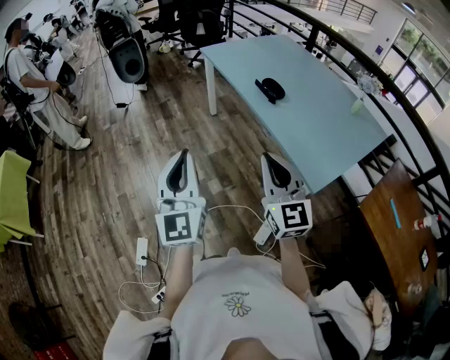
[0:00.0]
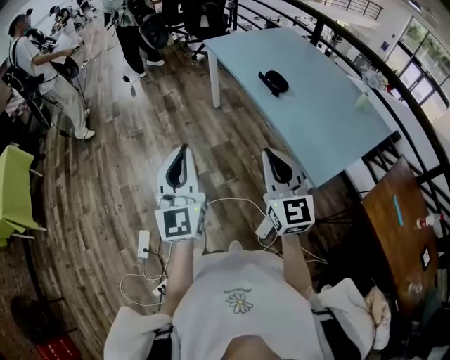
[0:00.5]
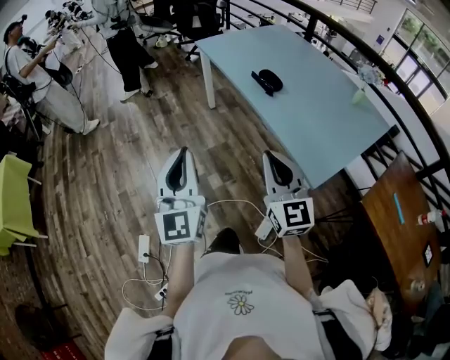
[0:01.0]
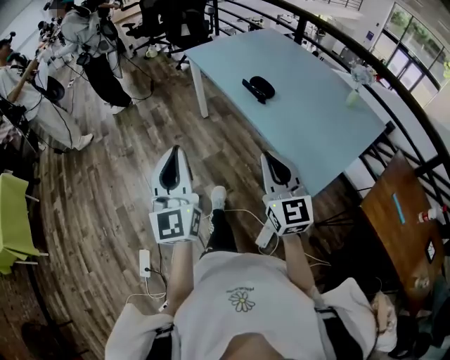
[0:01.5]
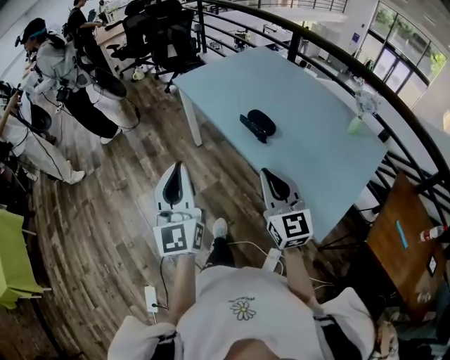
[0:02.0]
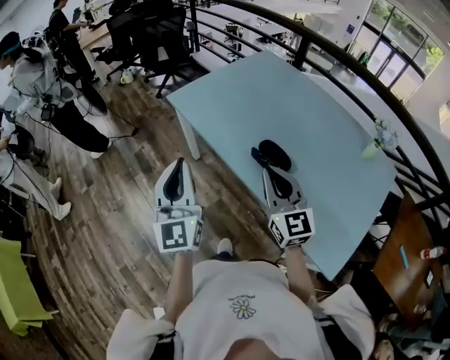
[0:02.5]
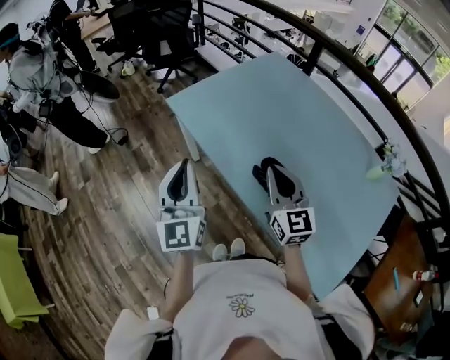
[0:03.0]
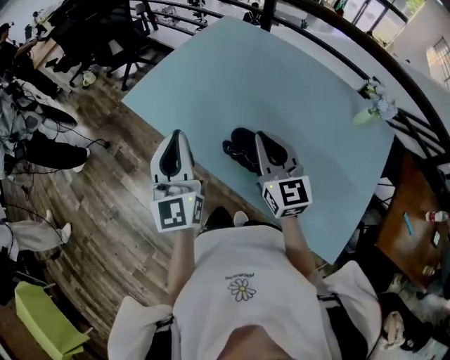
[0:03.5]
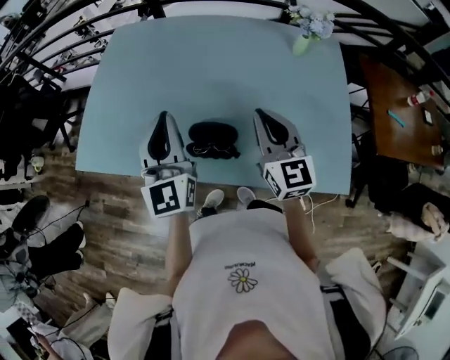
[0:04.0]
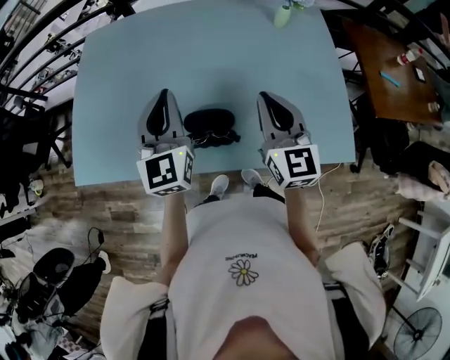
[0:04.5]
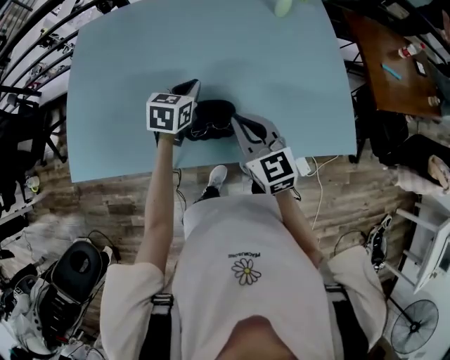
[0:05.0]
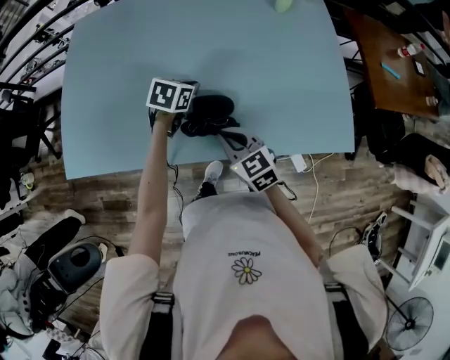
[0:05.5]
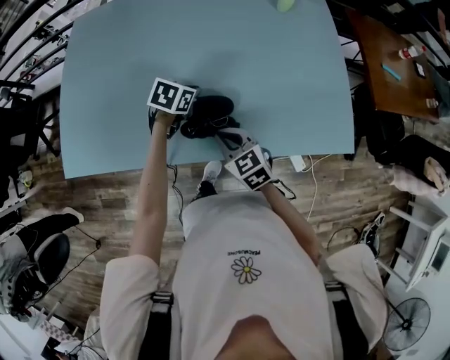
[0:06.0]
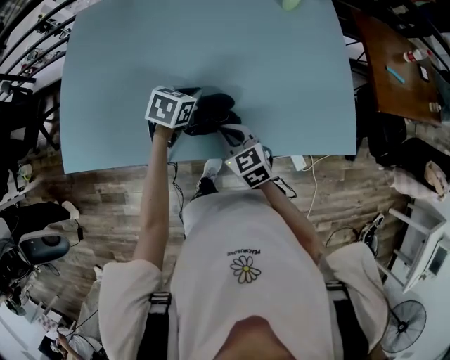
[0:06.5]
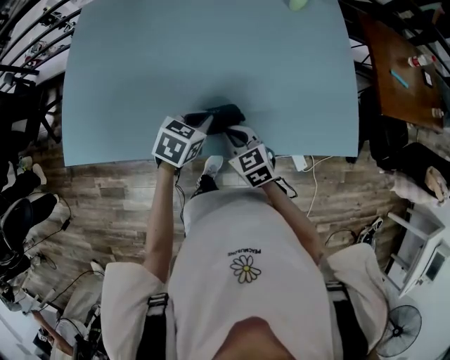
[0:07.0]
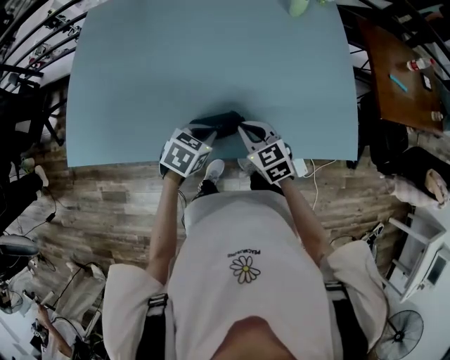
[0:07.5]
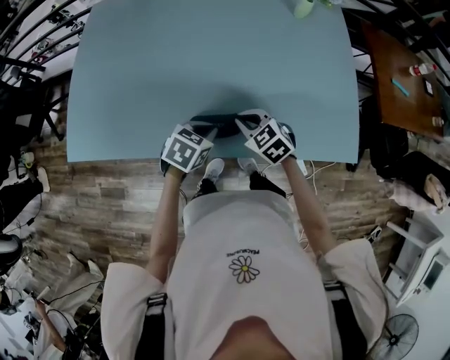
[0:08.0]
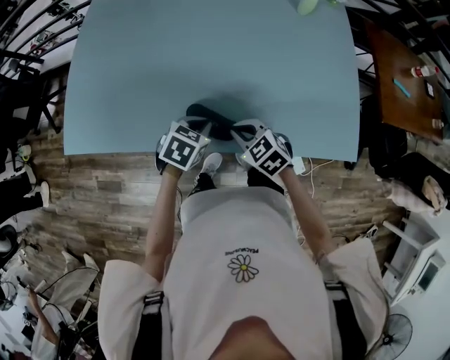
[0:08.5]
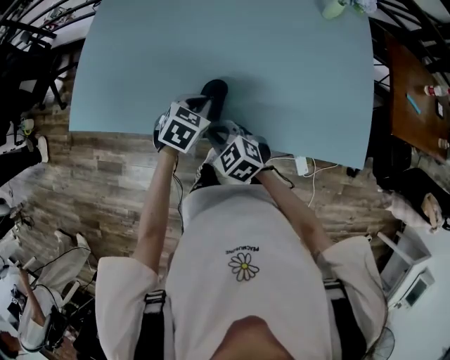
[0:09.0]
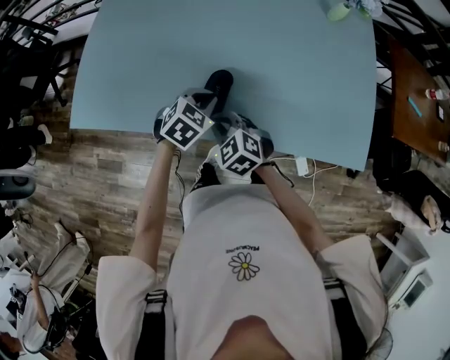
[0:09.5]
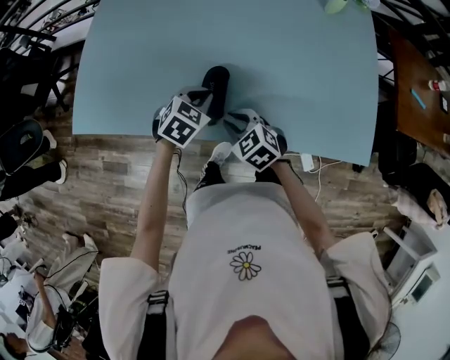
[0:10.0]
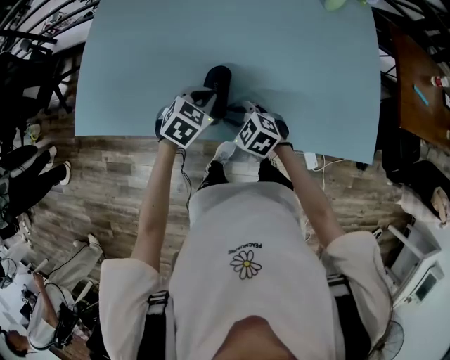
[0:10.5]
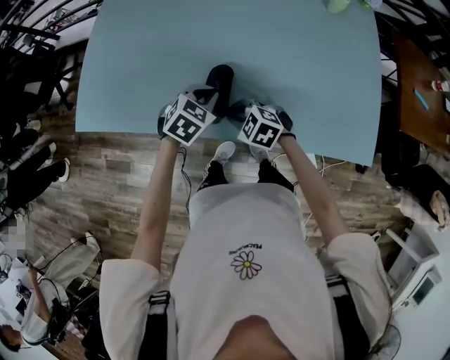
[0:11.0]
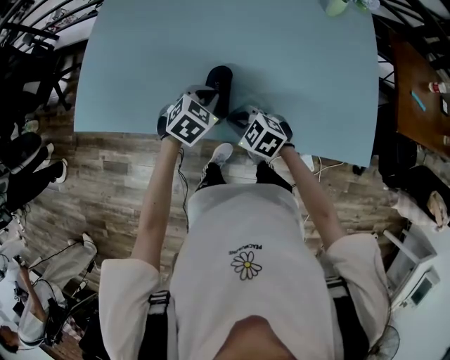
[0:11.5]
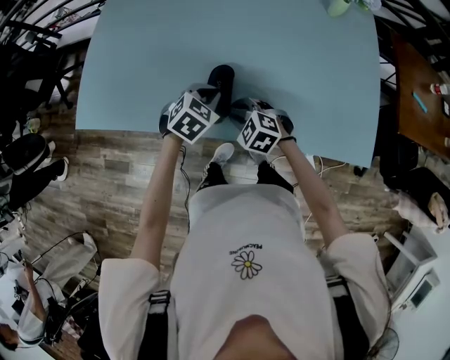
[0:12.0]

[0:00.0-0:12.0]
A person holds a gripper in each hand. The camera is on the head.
0:00.0 to 0:02.0: The two grippers go approximately 25 cm forward.
0:02.0 to 0:04.0: The left gripper moves about 50 cm, and turns by some 40 degrees, while the right gripper moves approximately 35 cm, and changes its angle by about 50 degrees.
0:04.0 to 0:06.0: The left gripper is displaced downward by some 30 cm, and angles its fingers downward, by some 60 degrees, while the right gripper heads downward and to the left, covering approximately 20 cm, and points its fingers approximately 30 degrees further downward.
0:06.0 to 0:08.0: The left gripper is displaced backward by some 15 cm, while the right gripper shifts by approximately 5 cm.
0:08.0 to 0:10.0: The left gripper moves to the left and forward, roughly 10 cm; the right gripper is displaced to the left by some 10 cm.
0:10.0 to 0:12.0: The right gripper changes its angle by roughly 20 degrees.

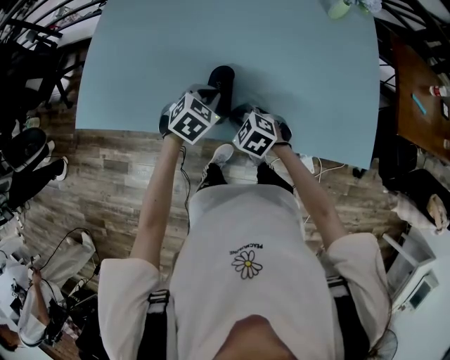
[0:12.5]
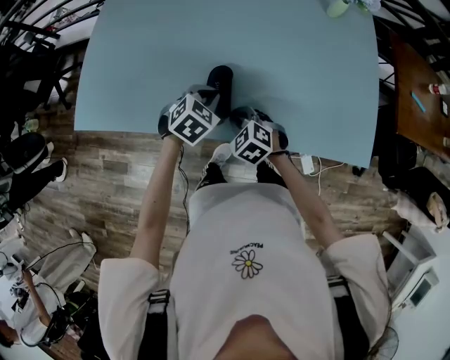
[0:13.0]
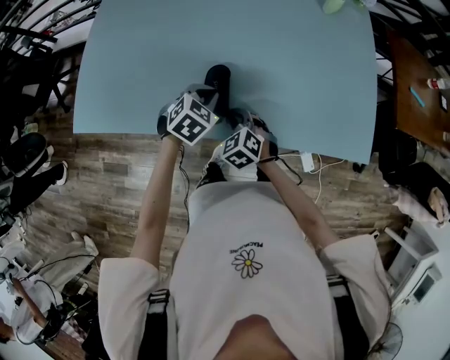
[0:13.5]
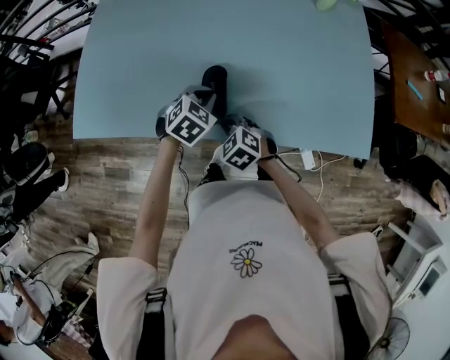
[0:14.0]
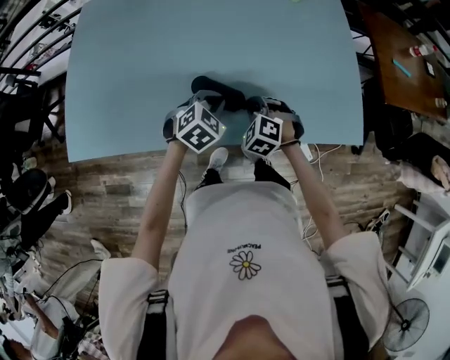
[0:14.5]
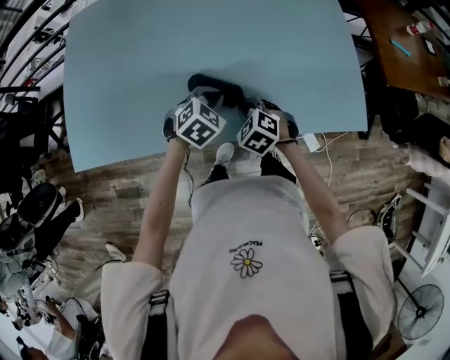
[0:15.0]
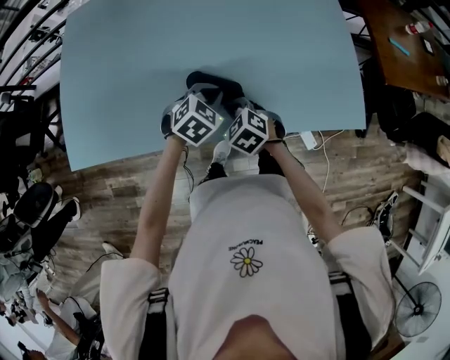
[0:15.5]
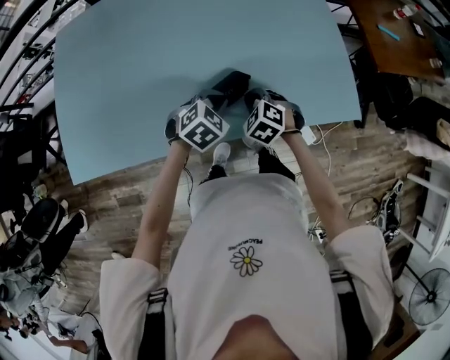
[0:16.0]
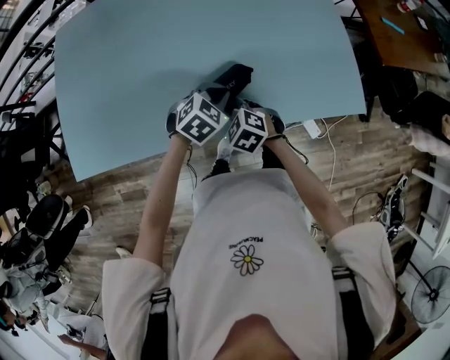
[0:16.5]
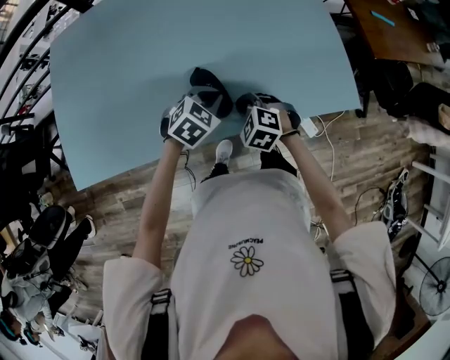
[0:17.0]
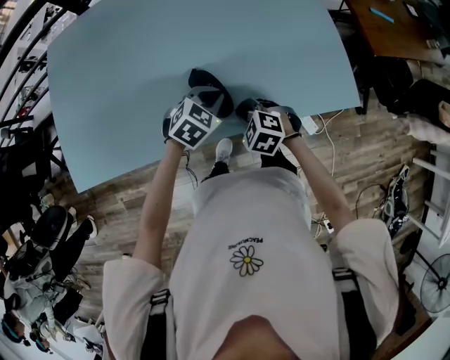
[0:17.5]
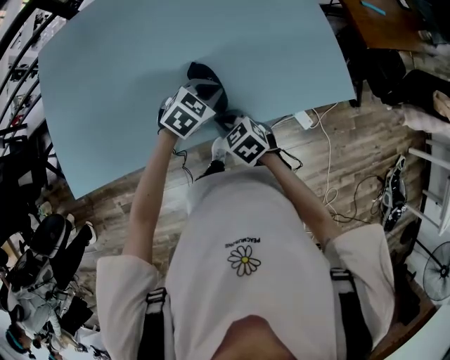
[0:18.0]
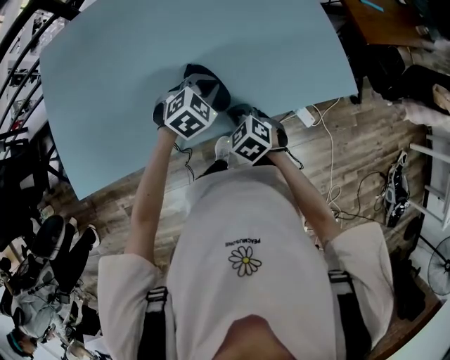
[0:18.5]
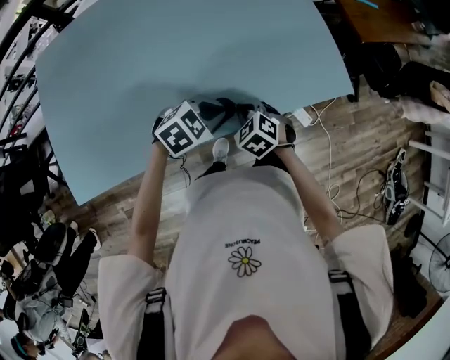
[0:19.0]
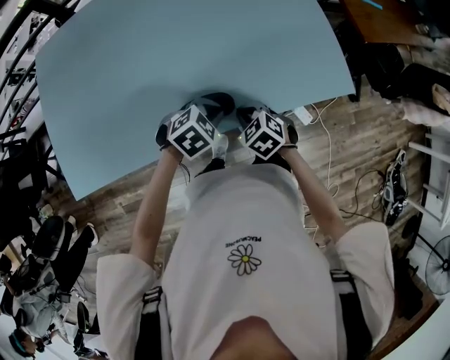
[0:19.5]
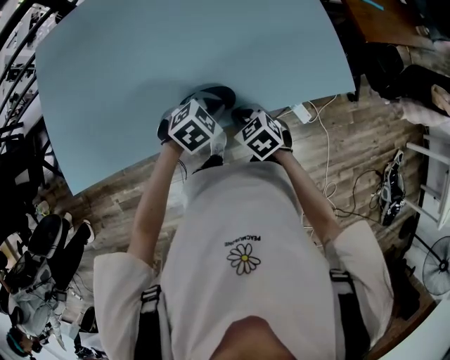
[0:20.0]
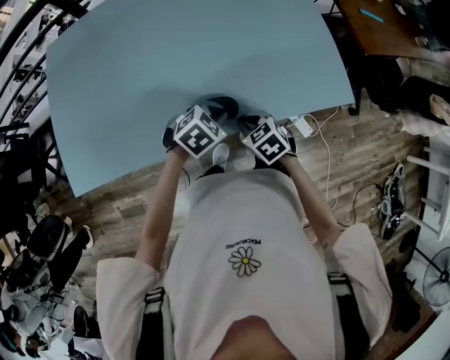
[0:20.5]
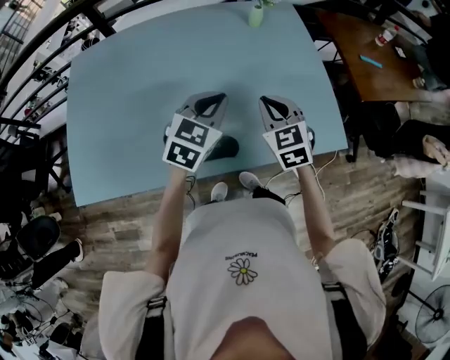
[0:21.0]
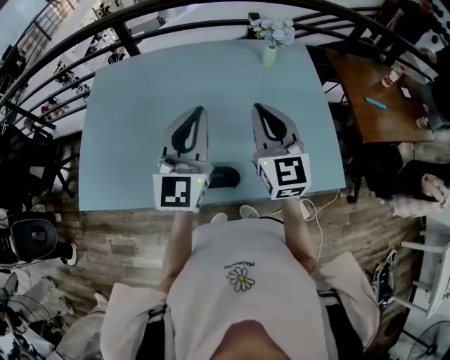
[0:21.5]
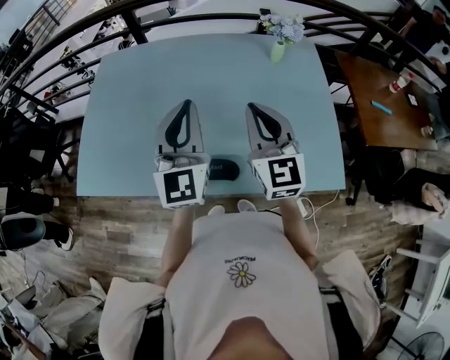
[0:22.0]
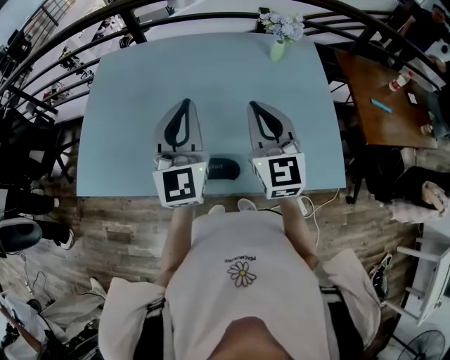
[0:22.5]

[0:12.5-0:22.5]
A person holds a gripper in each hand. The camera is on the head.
0:12.5 to 0:14.5: The left gripper moves some 10 cm, while the right gripper ends up roughly 10 cm from where it was, and rotates approximately 30 degrees.
0:14.5 to 0:16.5: The left gripper goes roughly 5 cm to the right; the right gripper moves left and right over roughly 10 cm, changing direction 2 times, and swivels roughly 30 degrees.
0:18.5 to 0:20.5: The left gripper goes roughly 5 cm backward.
0:20.5 to 0:22.5: The two grippers go some 30 cm upward. The right gripper tilts its fingers approximately 60 degrees upward, while the left gripper tips its fingers upward by roughly 70 degrees.

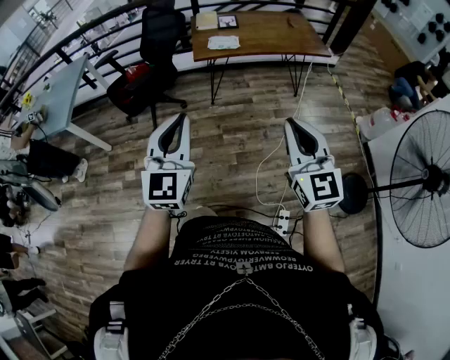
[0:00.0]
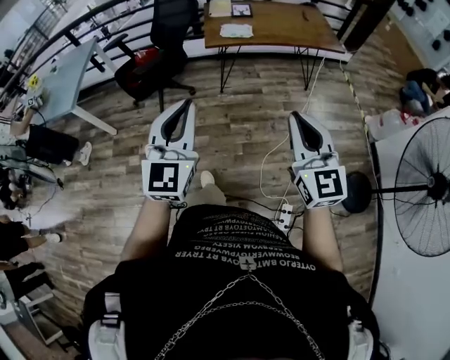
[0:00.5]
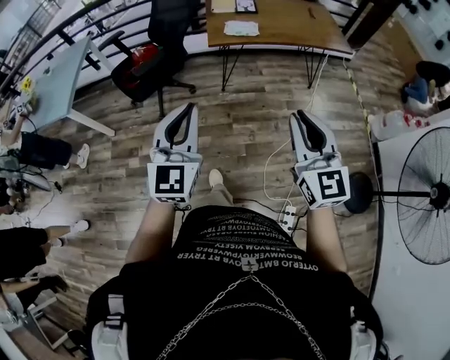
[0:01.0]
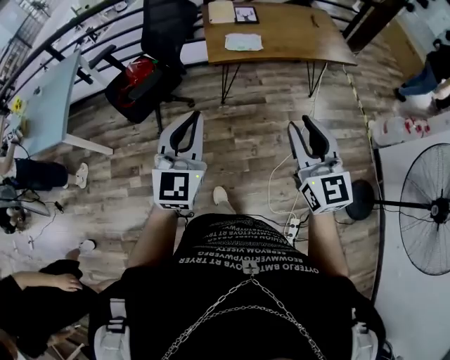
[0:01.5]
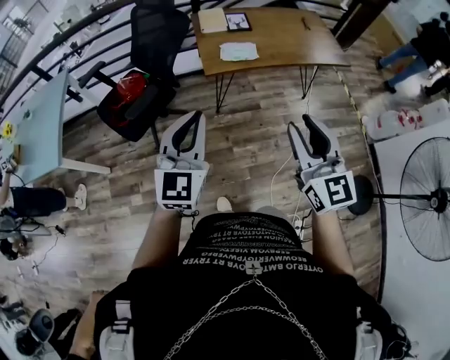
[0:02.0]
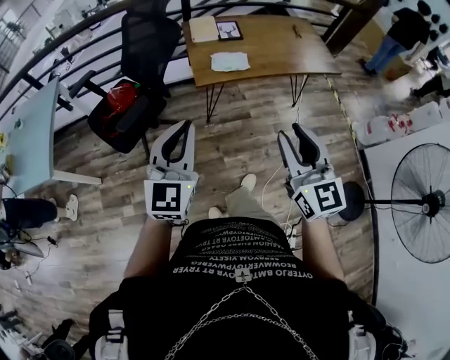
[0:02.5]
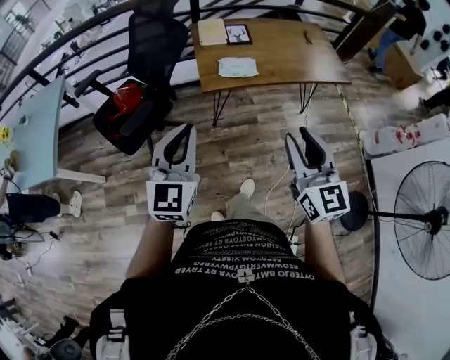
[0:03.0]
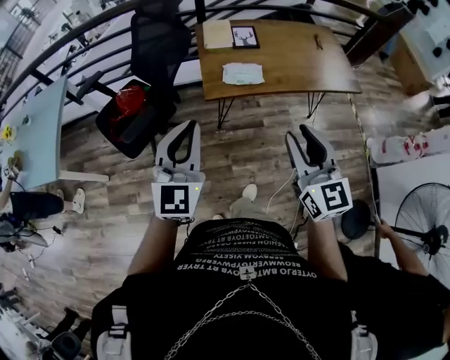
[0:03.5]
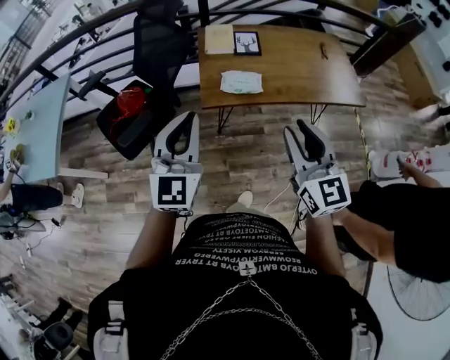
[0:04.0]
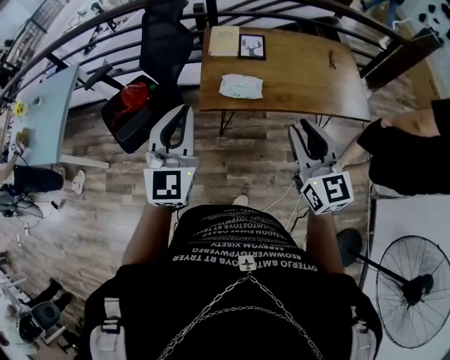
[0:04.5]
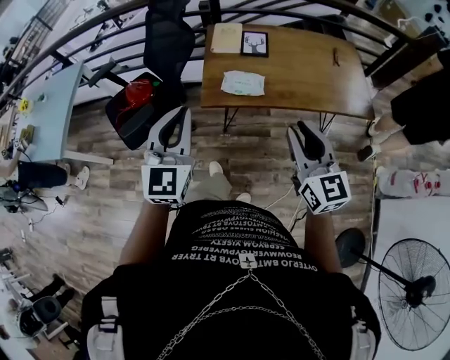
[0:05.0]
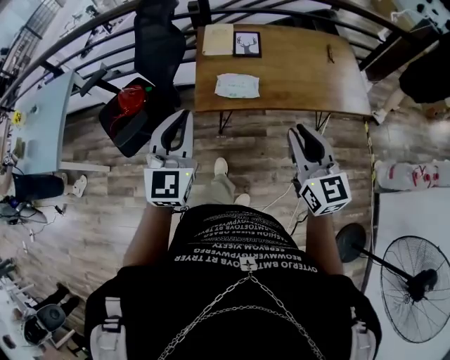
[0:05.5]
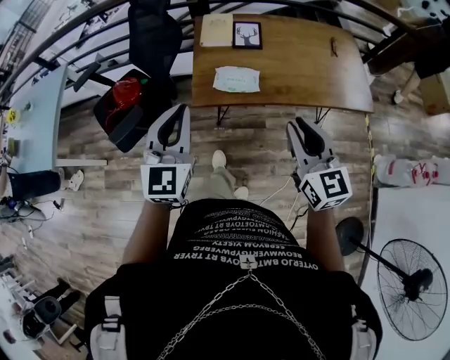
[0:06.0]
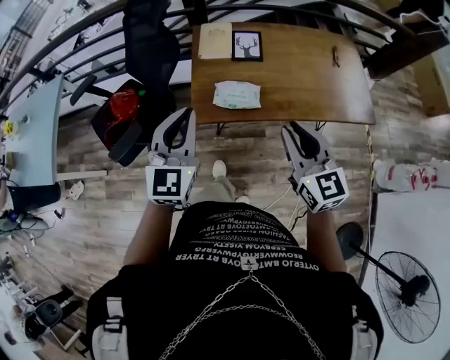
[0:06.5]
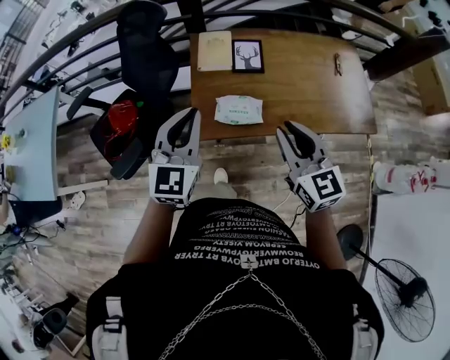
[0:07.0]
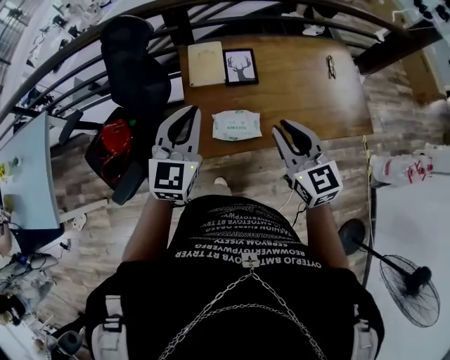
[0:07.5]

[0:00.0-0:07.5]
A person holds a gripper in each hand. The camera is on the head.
0:00.0 to 0:02.0: The right gripper moves forward and to the left, approximately 30 cm, and opens its fingers. The left gripper shifts about 30 cm forward.
0:02.0 to 0:04.0: Both grippers move forward, roughly 20 cm.
0:04.0 to 0:05.5: The two grippers go some 10 cm to the right.
0:05.5 to 0:07.5: The grippers both shift forward by roughly 25 cm.
